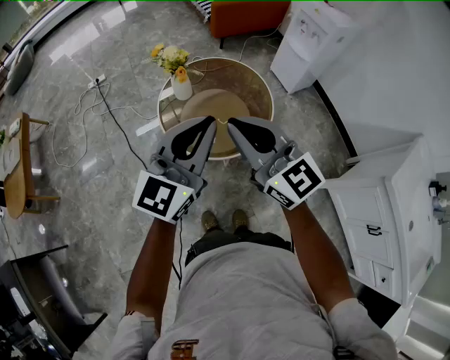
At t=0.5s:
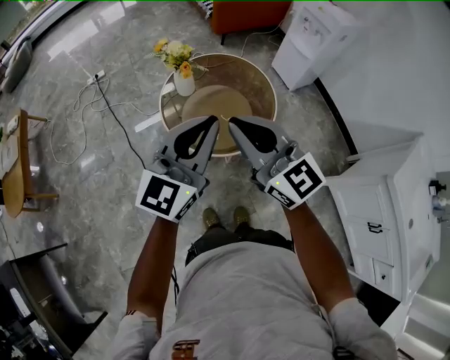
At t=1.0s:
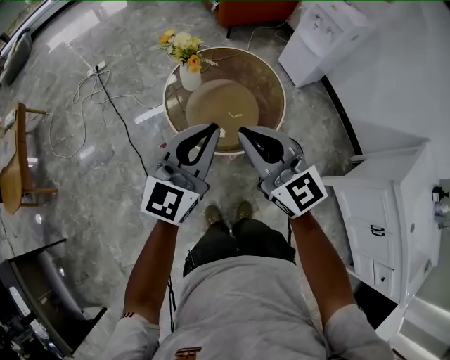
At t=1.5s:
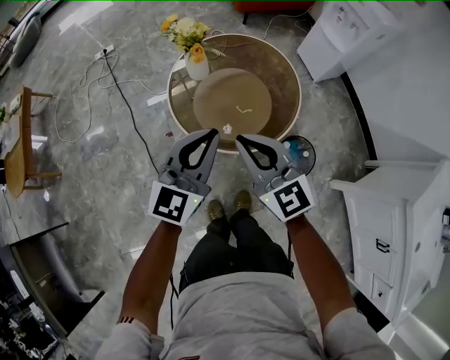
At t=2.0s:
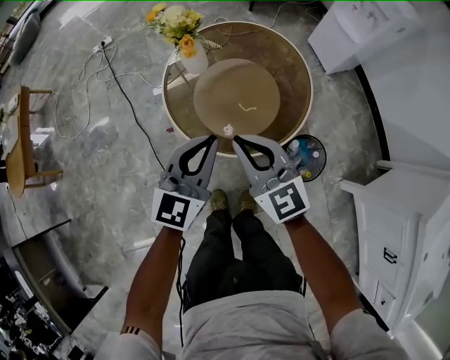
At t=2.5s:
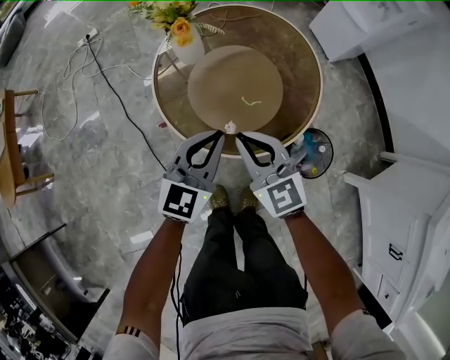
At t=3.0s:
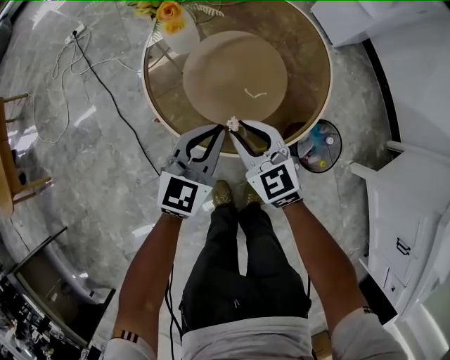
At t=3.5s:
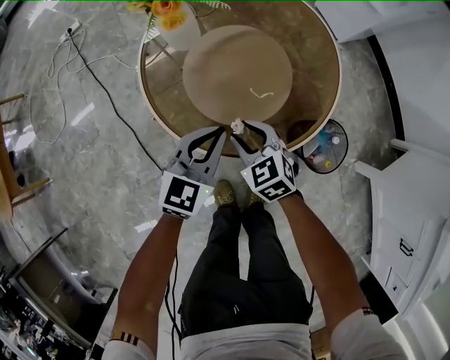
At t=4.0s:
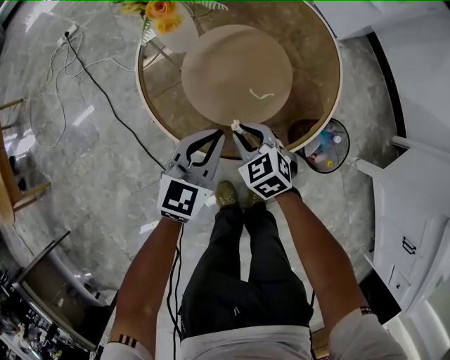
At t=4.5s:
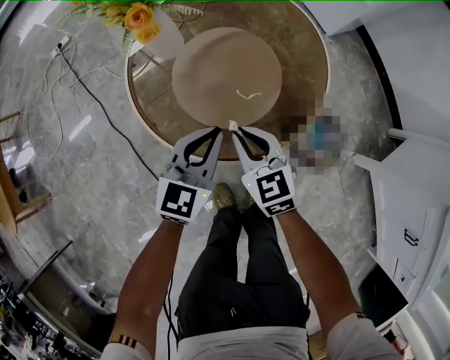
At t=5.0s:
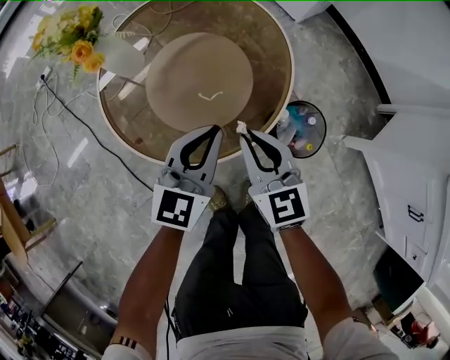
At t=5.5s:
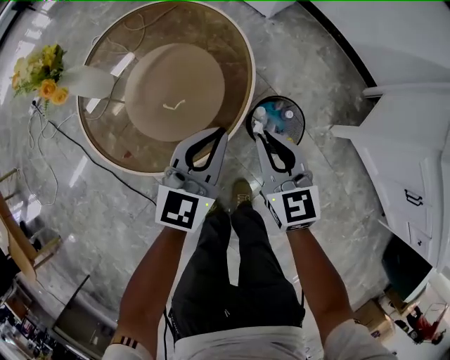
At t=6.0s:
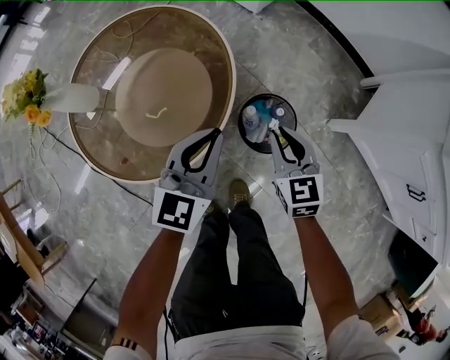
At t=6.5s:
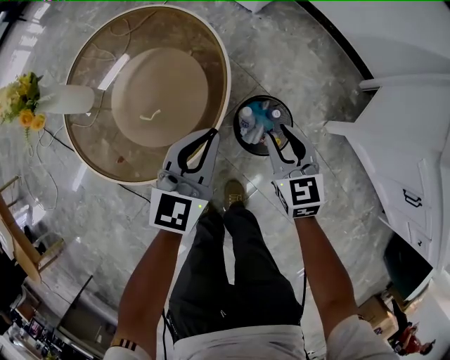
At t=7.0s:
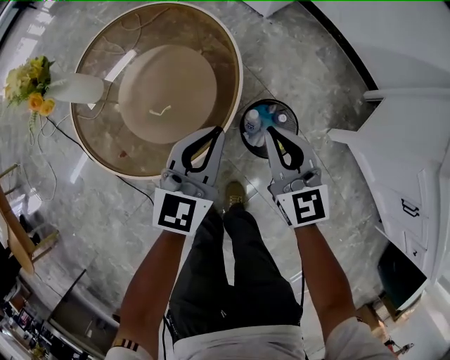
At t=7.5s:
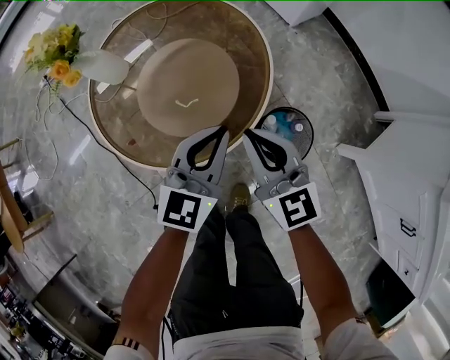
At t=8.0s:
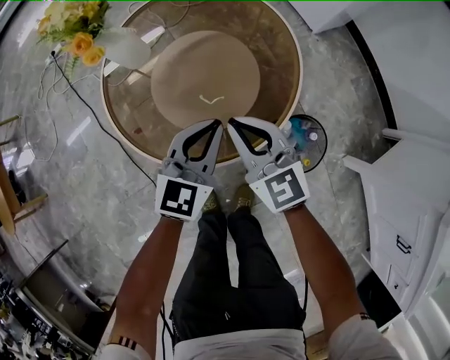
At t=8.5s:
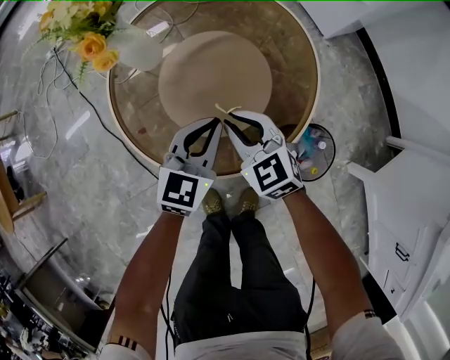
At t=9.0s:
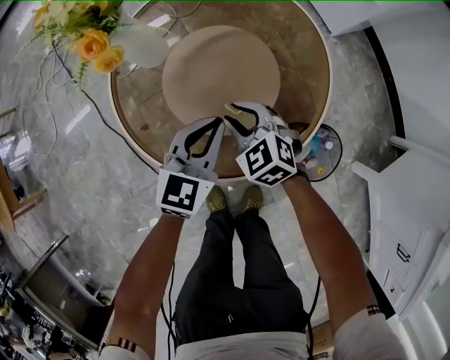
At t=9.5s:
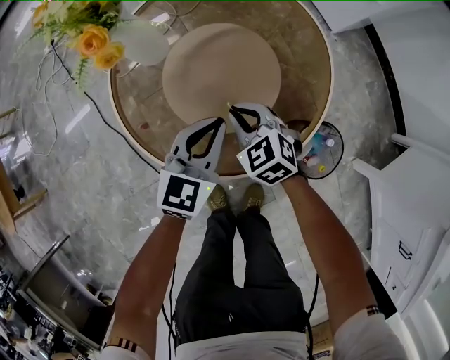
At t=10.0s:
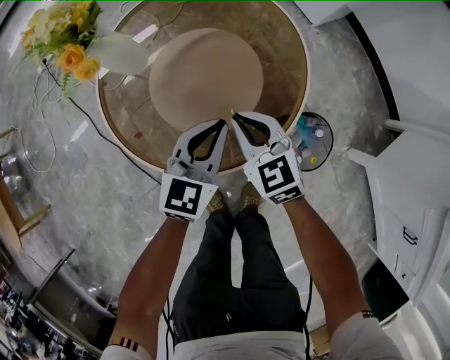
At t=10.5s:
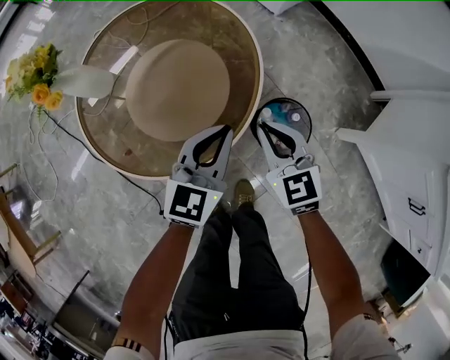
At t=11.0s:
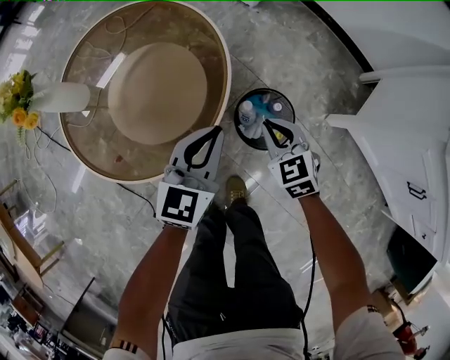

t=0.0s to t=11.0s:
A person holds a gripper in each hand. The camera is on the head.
t=0.0s to t=2.0s: The two grippers go approximately 25 cm downward.
t=2.0s to t=3.5s: The two grippers go some 25 cm downward. The right gripper angles its fingers downward, by roughly 30 degrees, and opens its fingers.
t=3.5s to t=5.5s: The right gripper changes place by about 30 cm, turns by some 40 degrees, and closes; the left gripper changes place by about 25 cm.
t=5.5s to t=7.5s: The left gripper goes to the right and returns, roughly 5 cm each way. Meanwhile the right gripper heads to the left, covering roughly 5 cm, rotates roughly 20 degrees, and opens, then closes again.
t=7.5s to t=9.0s: The right gripper goes roughly 25 cm downward, to the left and forward, points its fingers approximately 30 degrees further downward, and opens its fingers. Meanwhile the left gripper moves to the left, downward and forward, some 20 cm.
t=9.0s to t=11.0s: The right gripper moves roughly 10 cm upward and comes back, rotates some 40 degrees, and closes; the left gripper changes place by about 25 cm.

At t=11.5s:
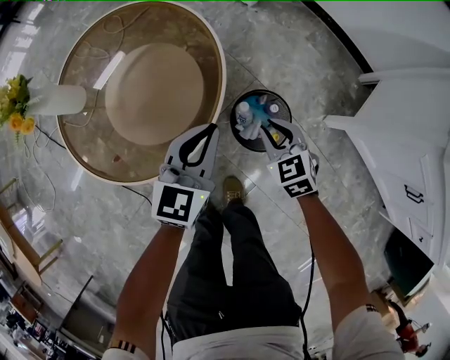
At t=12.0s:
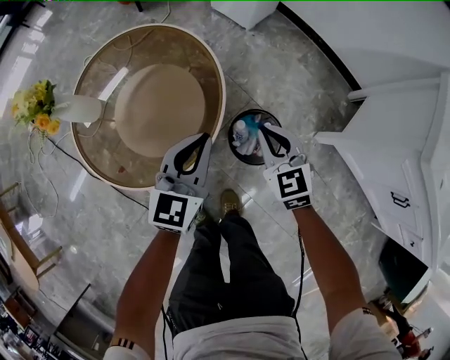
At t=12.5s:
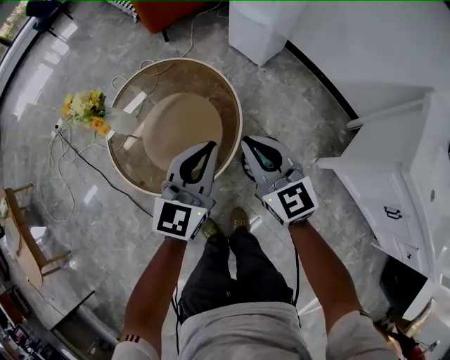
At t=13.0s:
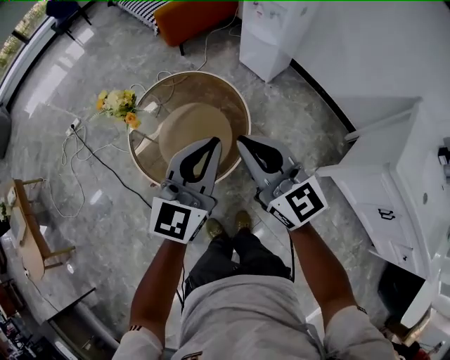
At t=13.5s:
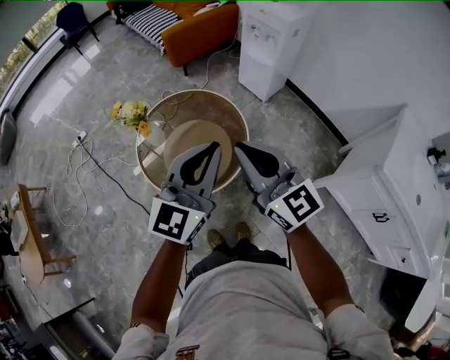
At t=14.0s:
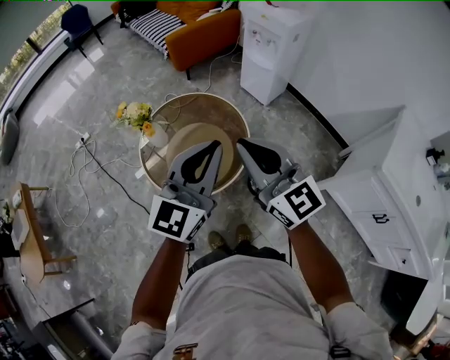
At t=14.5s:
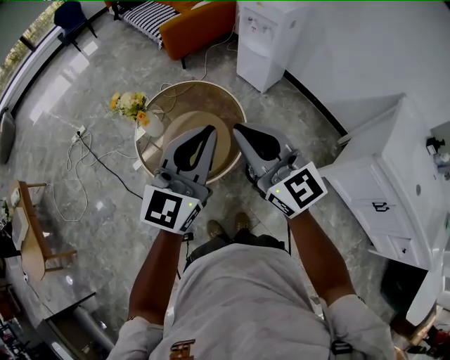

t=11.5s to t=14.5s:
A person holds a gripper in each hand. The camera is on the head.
t=11.5s to t=13.0s: Both grippers travel together upward, about 40 cm. The left gripper swivels roughly 20 degrees; the right gripper angles its fingers upward, by roughly 50 degrees.
t=13.0s to t=14.5s: Both grippers move upward and backward, approximately 10 cm.

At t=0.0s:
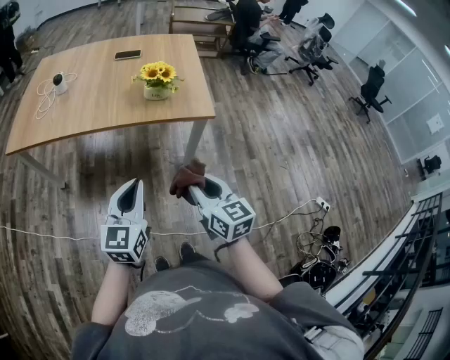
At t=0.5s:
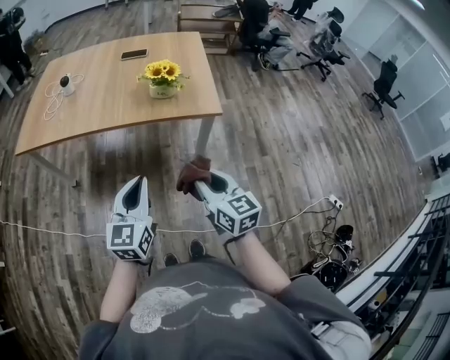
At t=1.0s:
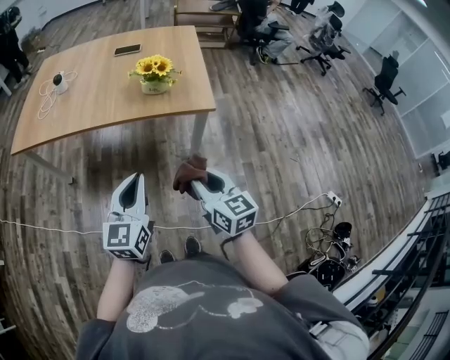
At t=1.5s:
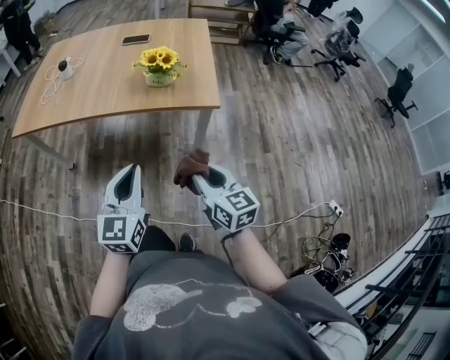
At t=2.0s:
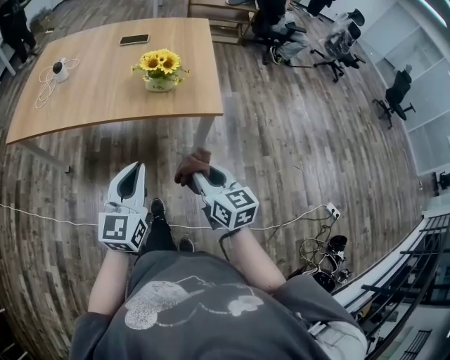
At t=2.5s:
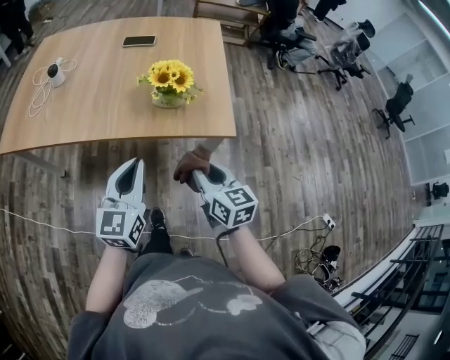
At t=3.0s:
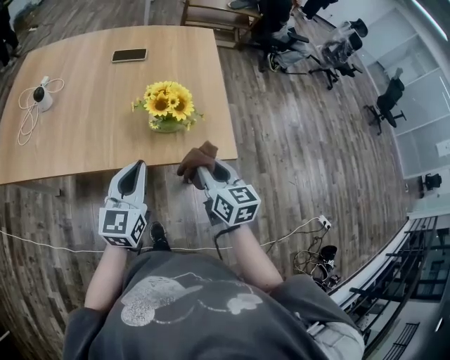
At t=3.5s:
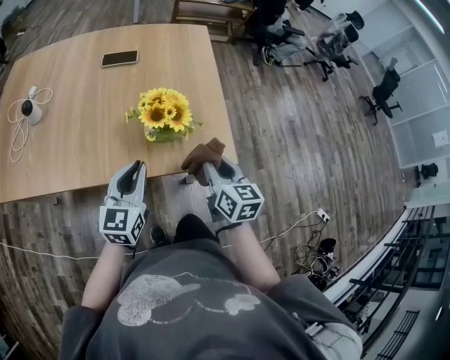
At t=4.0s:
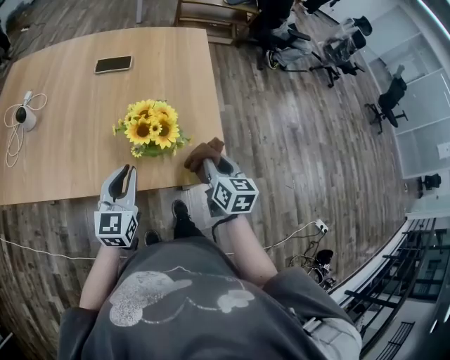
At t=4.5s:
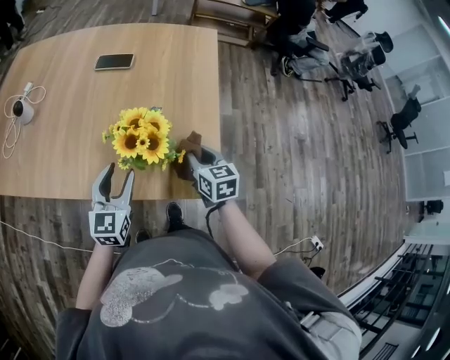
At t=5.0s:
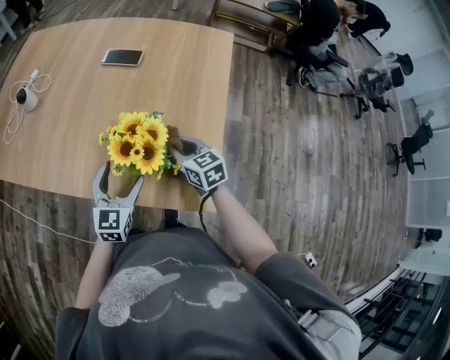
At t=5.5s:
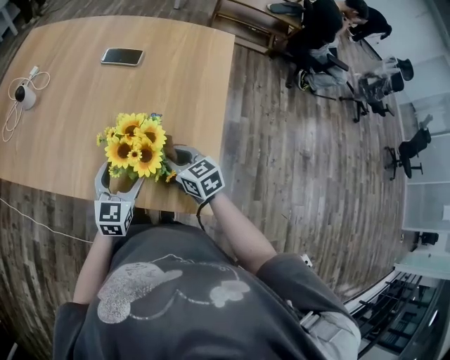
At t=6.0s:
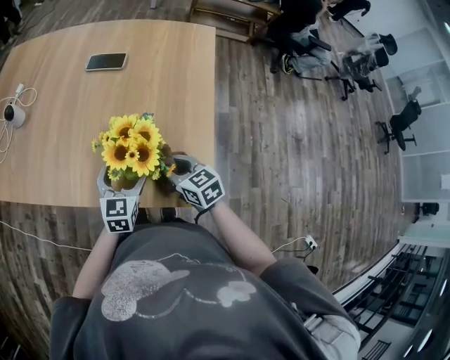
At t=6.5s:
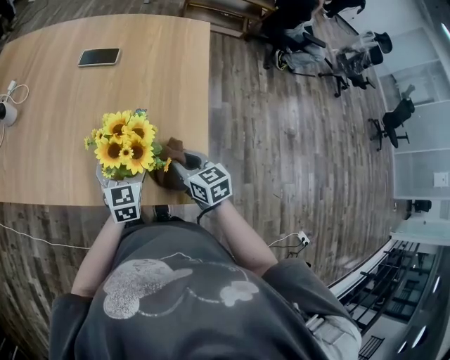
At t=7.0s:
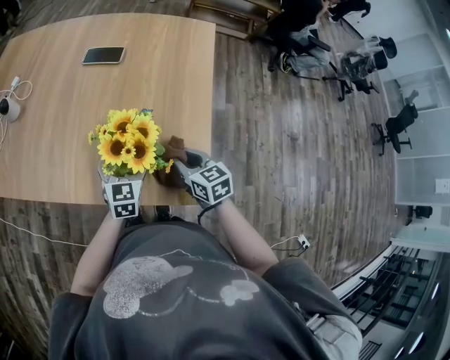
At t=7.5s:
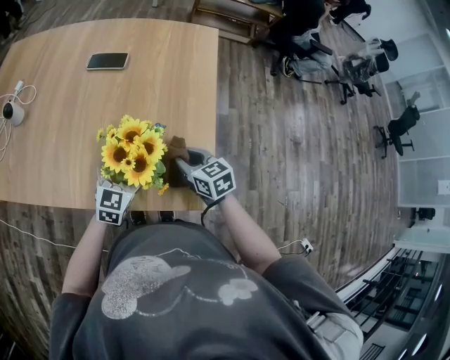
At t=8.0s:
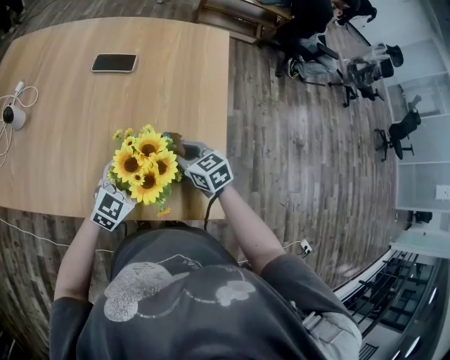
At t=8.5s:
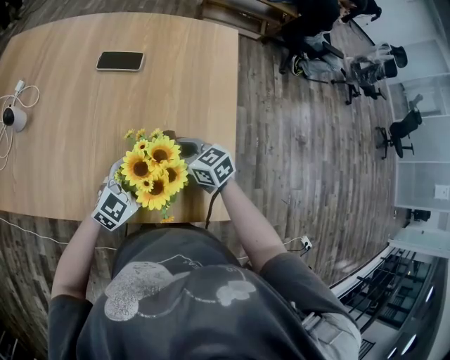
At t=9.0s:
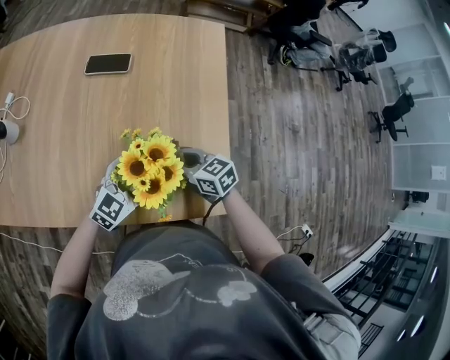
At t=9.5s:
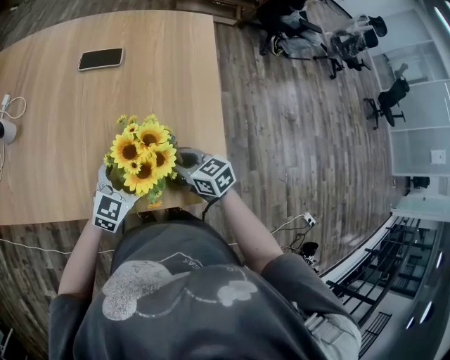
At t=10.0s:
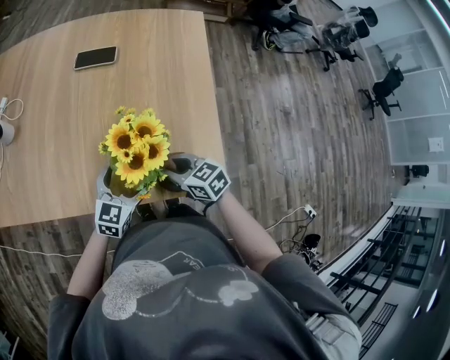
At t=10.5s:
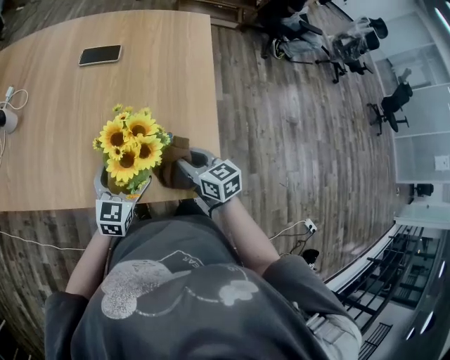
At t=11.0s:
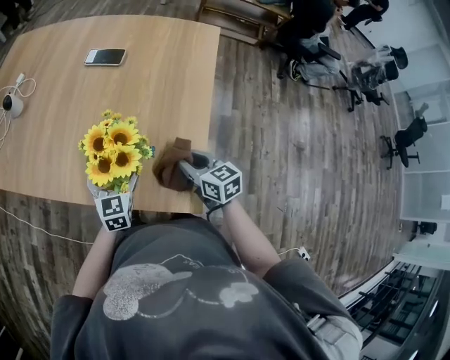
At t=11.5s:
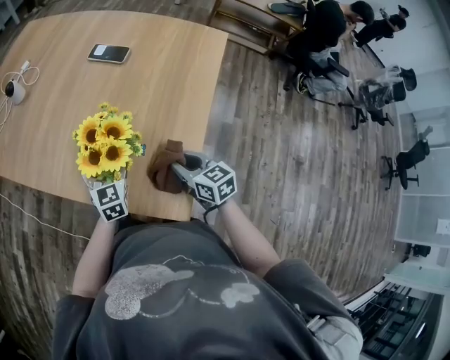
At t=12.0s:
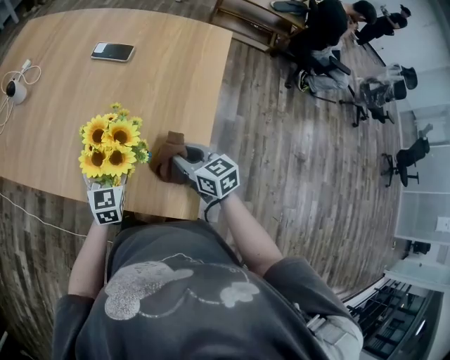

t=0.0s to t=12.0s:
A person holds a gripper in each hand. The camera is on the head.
t=0.0s to t=2.0s: Both grippers move forward and to the right, roughly 10 cm.
t=2.0s to t=4.0s: The grippers both shift forward by some 30 cm.
t=4.0s to t=6.0s: The right gripper changes place by some 15 cm, and turns by approximately 40 degrees. Meanwhile the left gripper moves some 15 cm, and opens.
t=6.0s to t=8.0s: The right gripper is displaced forward by some 10 cm. The left gripper rotates roughly 30 degrees.
t=8.0s to t=10.0s: The right gripper heads backward, covering approximately 10 cm.
t=10.0s to t=12.0s: The left gripper moves about 5 cm, and rotates roughly 40 degrees. Meanwhile the right gripper changes place by roughly 15 cm.
